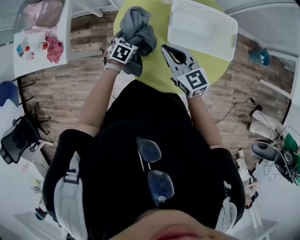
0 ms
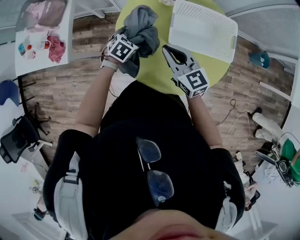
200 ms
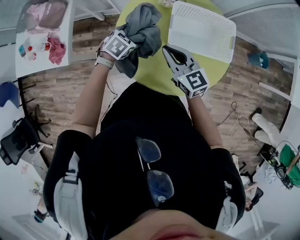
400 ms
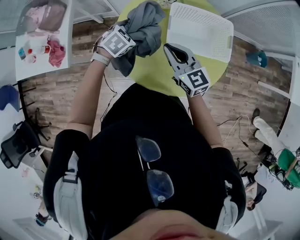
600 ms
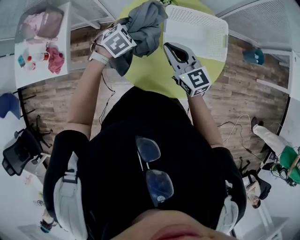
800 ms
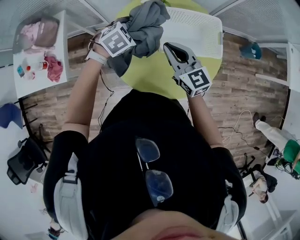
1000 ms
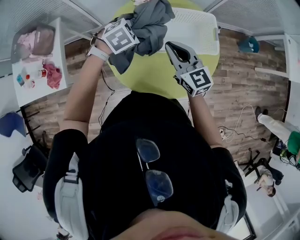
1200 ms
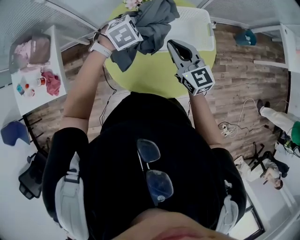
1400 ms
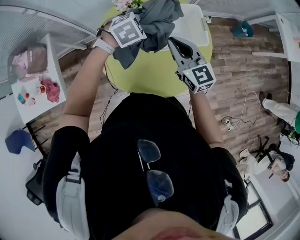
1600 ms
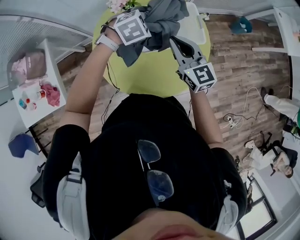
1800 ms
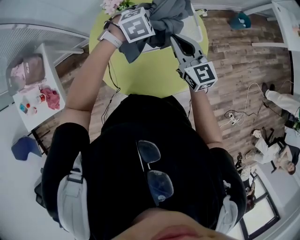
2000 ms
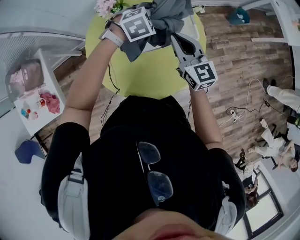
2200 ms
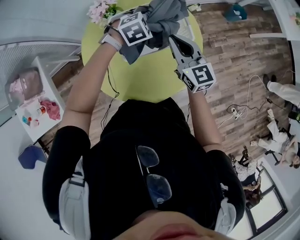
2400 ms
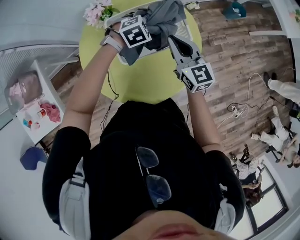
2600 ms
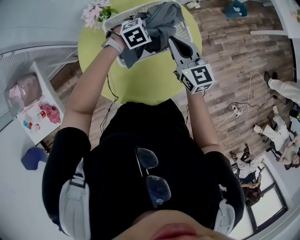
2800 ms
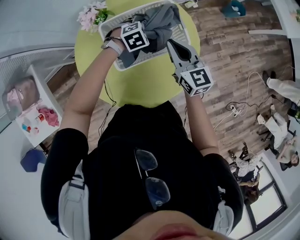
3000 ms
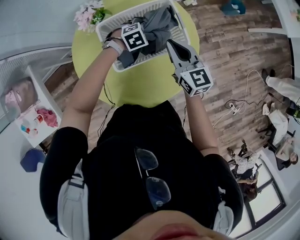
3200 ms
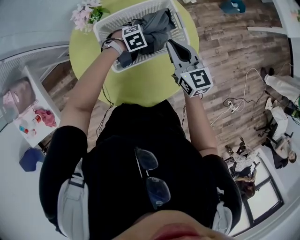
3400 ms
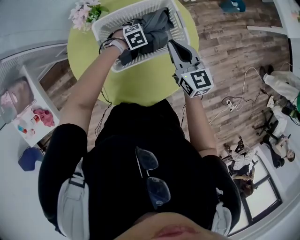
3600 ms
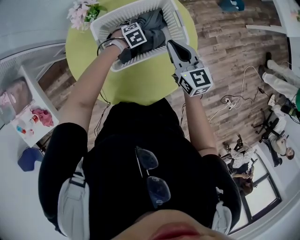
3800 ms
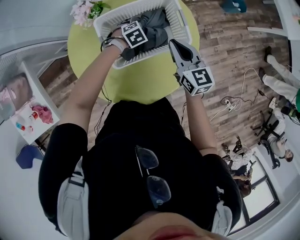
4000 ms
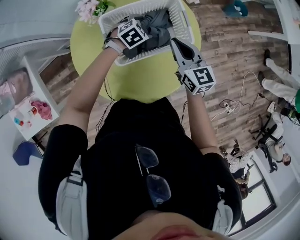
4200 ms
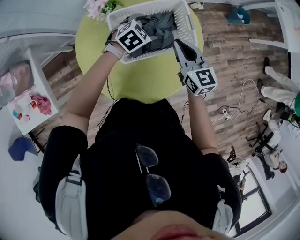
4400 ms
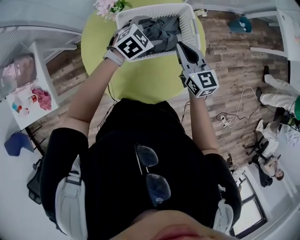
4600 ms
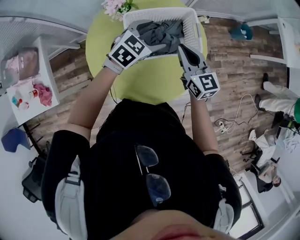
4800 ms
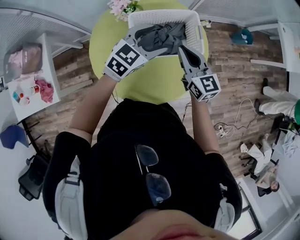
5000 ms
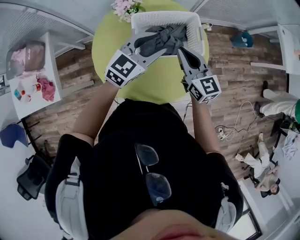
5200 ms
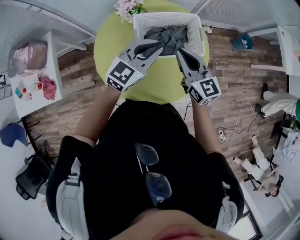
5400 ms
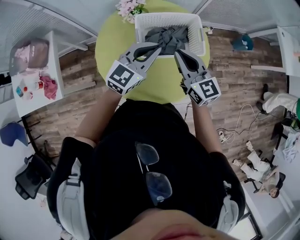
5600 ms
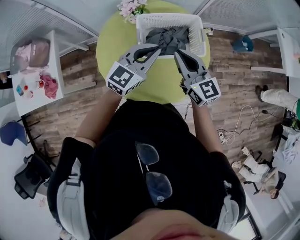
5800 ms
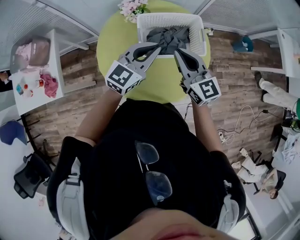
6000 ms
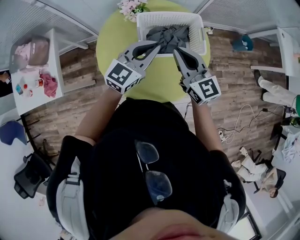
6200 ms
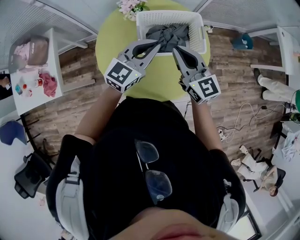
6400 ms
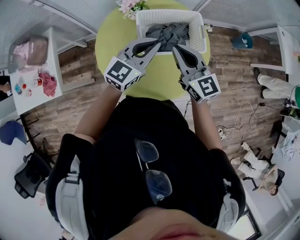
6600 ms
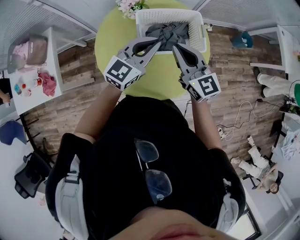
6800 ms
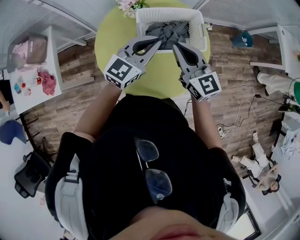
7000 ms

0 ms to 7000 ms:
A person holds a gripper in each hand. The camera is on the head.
0 ms to 1400 ms: The left gripper moves upward, roughly 20 cm, and rotates around the line of its fingers by roughly 50 degrees, clockwise from behind. The right gripper moves roughly 10 cm, and swivels about 20 degrees.
1400 ms to 2800 ms: The right gripper moves to the right, forward and downward, roughly 15 cm, while the left gripper moves to the right, downward and forward, approximately 25 cm.
2800 ms to 4200 ms: The left gripper moves downward, some 5 cm.
4200 ms to 5600 ms: The left gripper moves upward and backward, roughly 30 cm, tips its fingers upward by about 50 degrees, and closes its fingers. The right gripper is displaced upward, backward and to the left by roughly 15 cm.
5600 ms to 7000 ms: The grippers make only small movements.

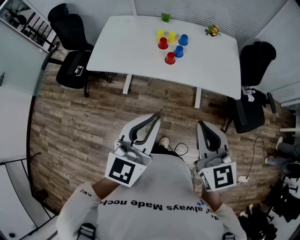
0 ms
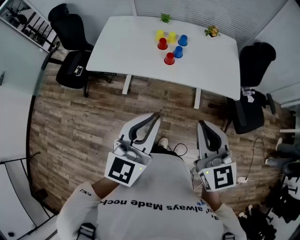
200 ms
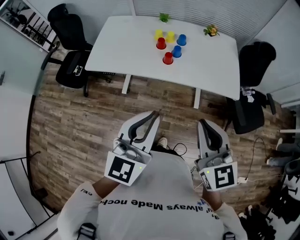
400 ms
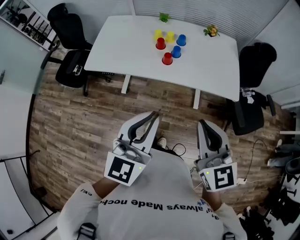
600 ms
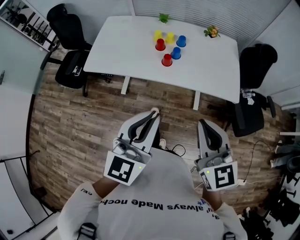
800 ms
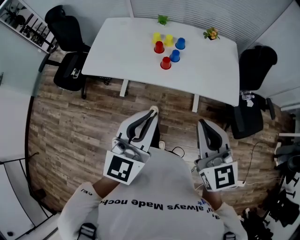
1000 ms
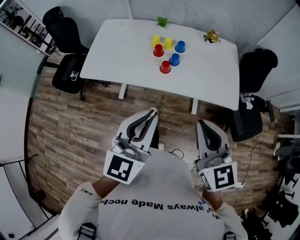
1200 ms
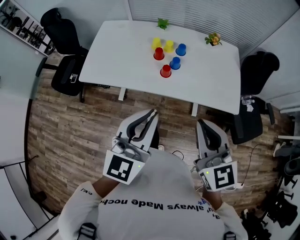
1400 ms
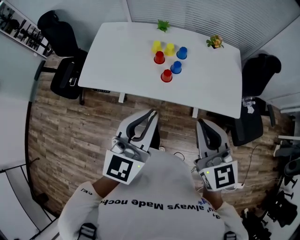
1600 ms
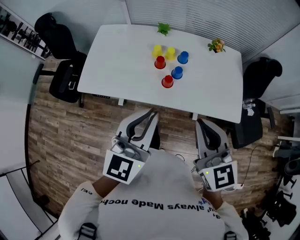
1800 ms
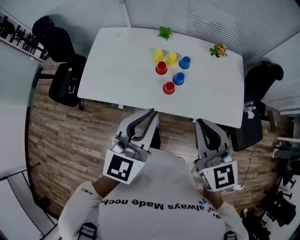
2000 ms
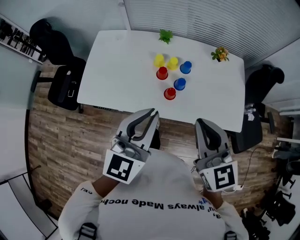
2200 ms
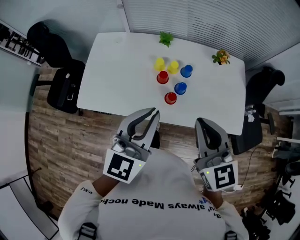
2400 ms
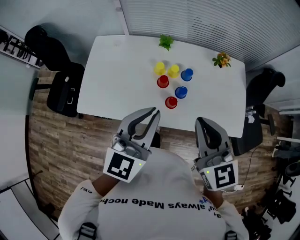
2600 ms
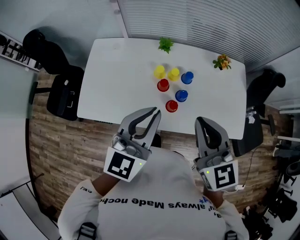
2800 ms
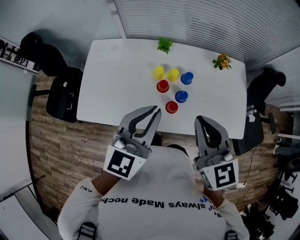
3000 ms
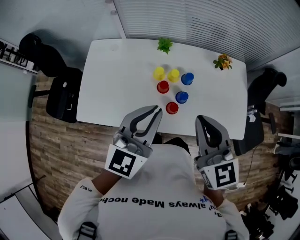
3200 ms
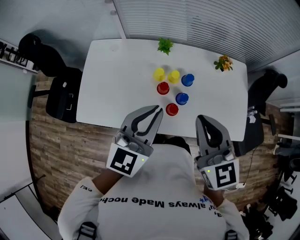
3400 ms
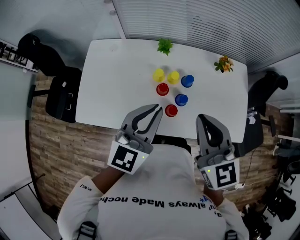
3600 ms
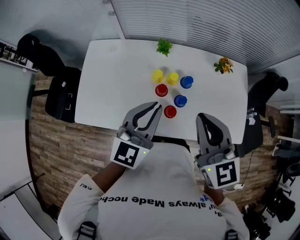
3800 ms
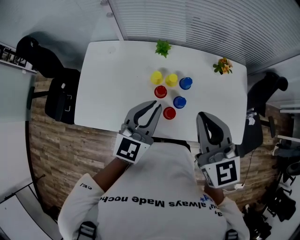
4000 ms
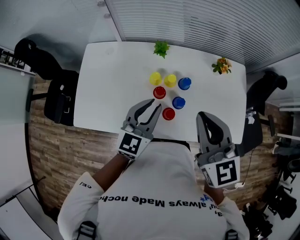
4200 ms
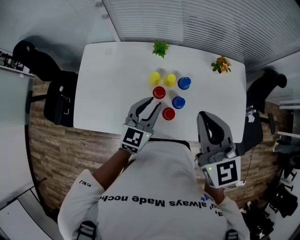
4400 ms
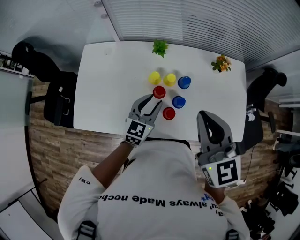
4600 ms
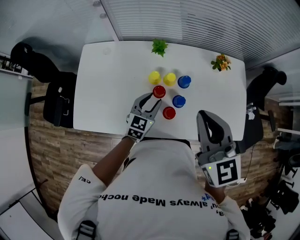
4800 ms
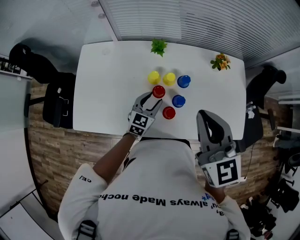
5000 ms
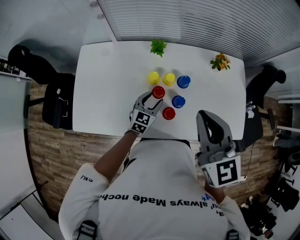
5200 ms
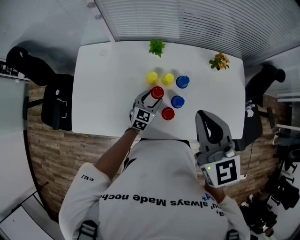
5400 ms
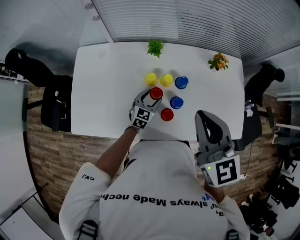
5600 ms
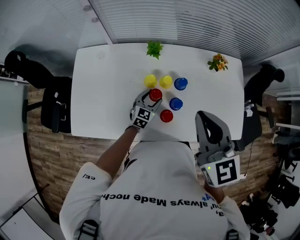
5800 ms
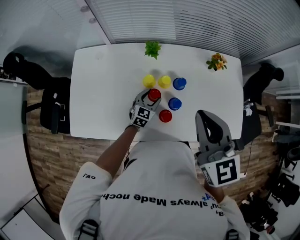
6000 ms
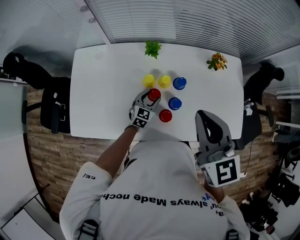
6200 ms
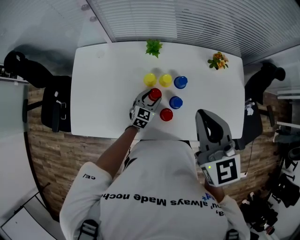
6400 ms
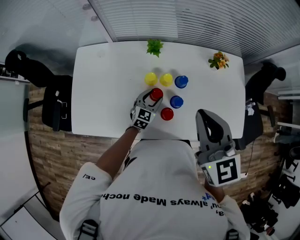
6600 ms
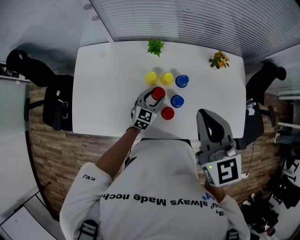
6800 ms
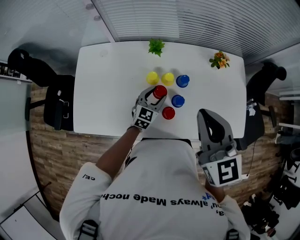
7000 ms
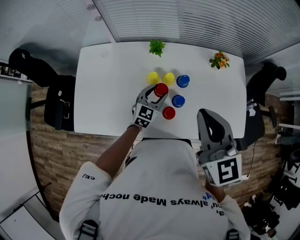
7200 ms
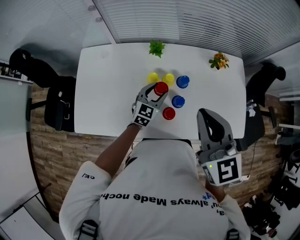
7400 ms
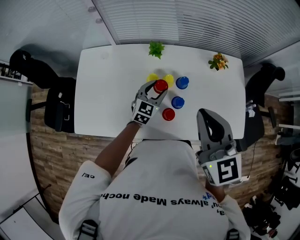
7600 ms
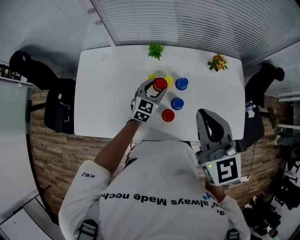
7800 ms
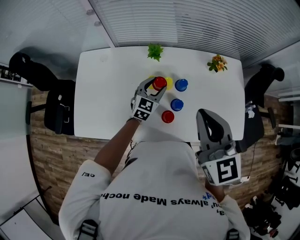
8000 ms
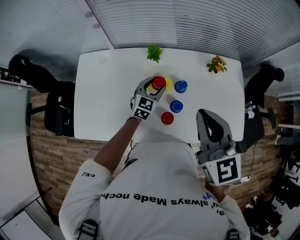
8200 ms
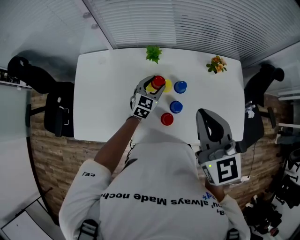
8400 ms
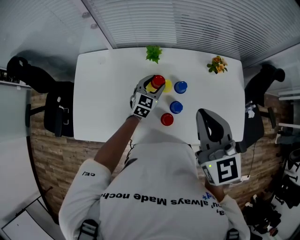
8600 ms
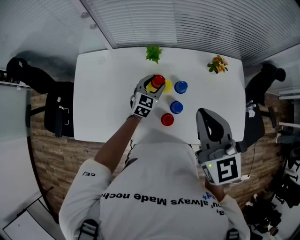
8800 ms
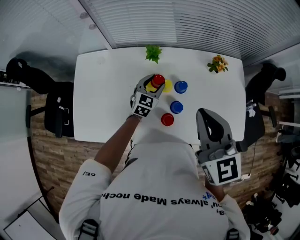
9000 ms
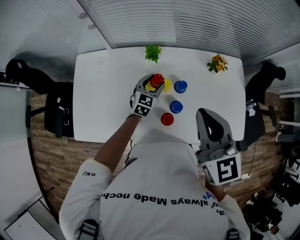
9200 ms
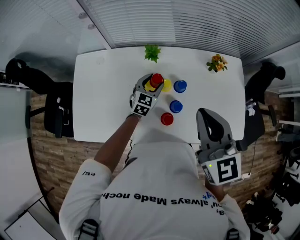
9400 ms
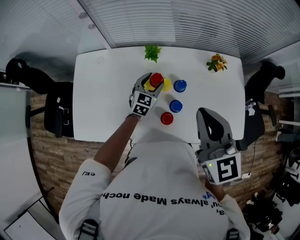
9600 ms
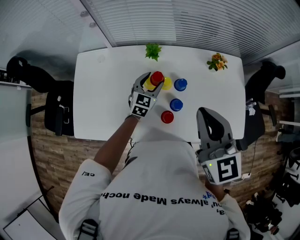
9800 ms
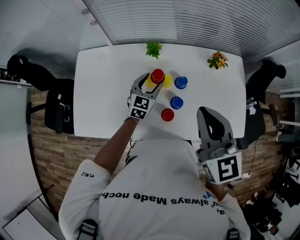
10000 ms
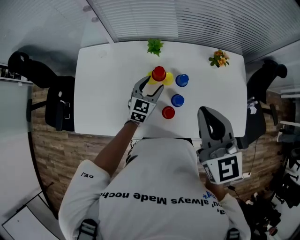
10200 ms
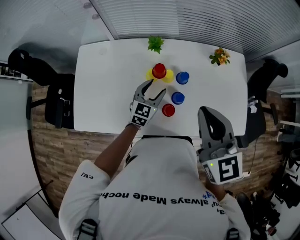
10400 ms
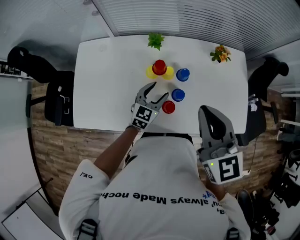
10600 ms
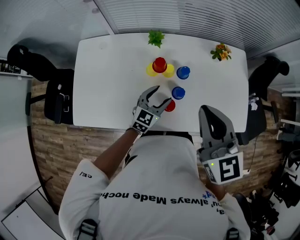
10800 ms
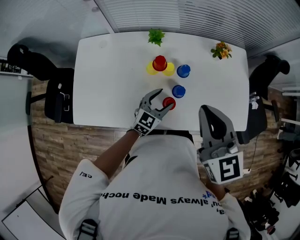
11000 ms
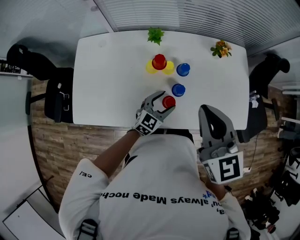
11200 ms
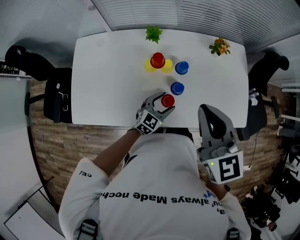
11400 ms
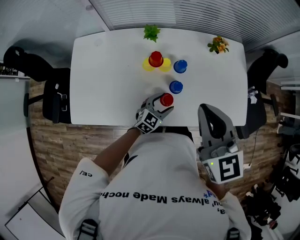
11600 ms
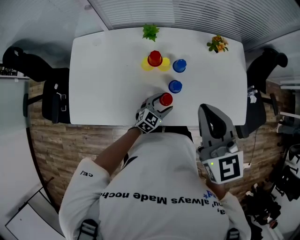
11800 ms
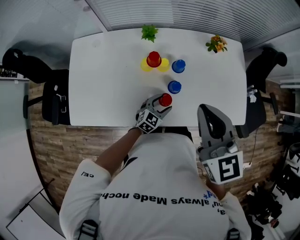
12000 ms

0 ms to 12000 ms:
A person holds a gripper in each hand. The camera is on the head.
0 ms to 1600 ms: The grippers both shift forward by about 15 cm.
1600 ms to 3000 ms: Both grippers travel together forward, about 20 cm.
3000 ms to 4400 ms: The right gripper is displaced forward by some 5 cm; the left gripper goes some 20 cm downward and forward.
4400 ms to 6000 ms: The left gripper goes some 20 cm downward, and opens.
6000 ms to 7600 ms: The left gripper travels upward by roughly 10 cm.
7600 ms to 9000 ms: The left gripper is displaced forward by roughly 5 cm.
9000 ms to 10400 ms: The left gripper moves backward, some 10 cm.
10400 ms to 12000 ms: The left gripper is displaced downward, backward and to the right by some 20 cm.

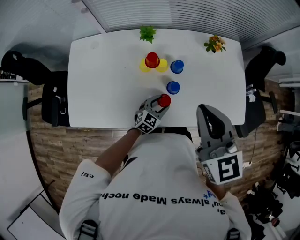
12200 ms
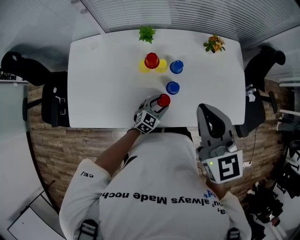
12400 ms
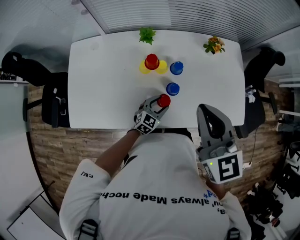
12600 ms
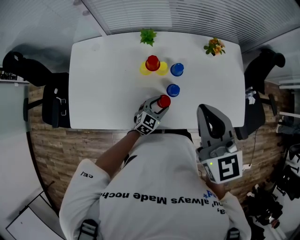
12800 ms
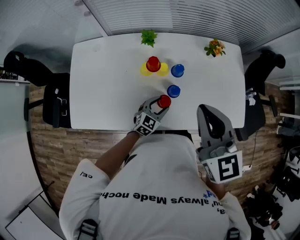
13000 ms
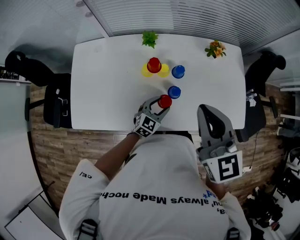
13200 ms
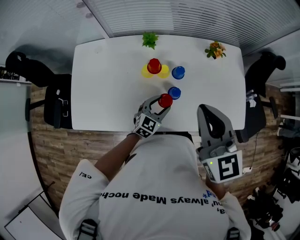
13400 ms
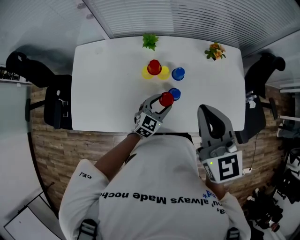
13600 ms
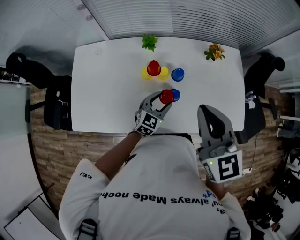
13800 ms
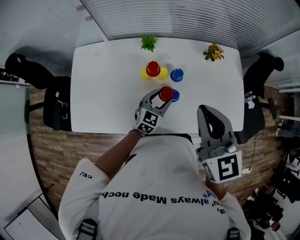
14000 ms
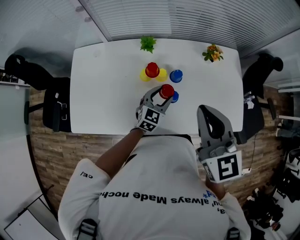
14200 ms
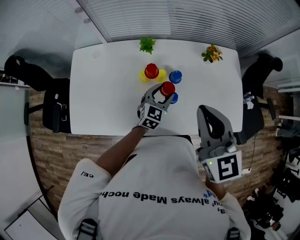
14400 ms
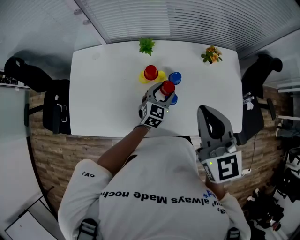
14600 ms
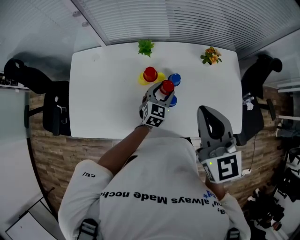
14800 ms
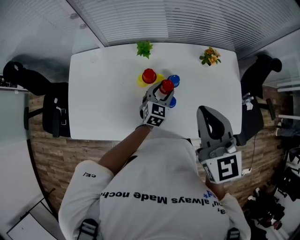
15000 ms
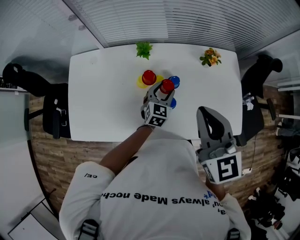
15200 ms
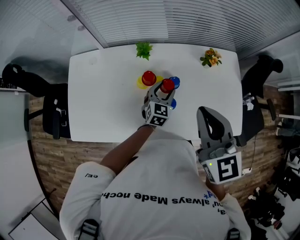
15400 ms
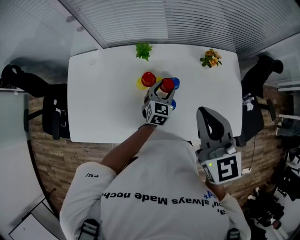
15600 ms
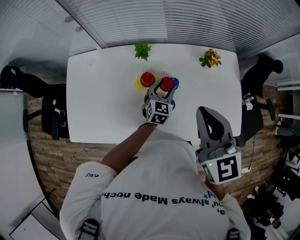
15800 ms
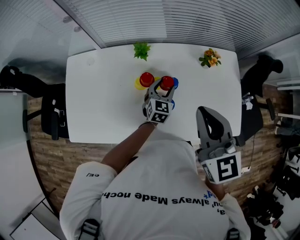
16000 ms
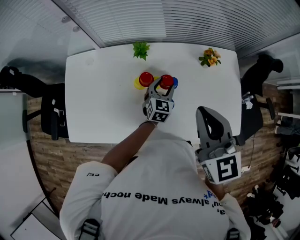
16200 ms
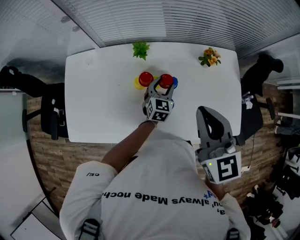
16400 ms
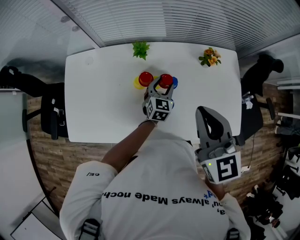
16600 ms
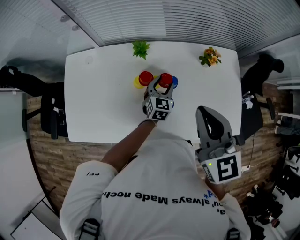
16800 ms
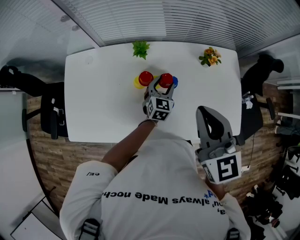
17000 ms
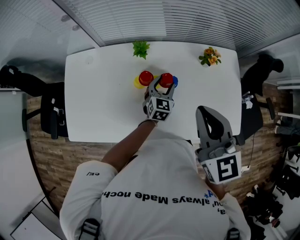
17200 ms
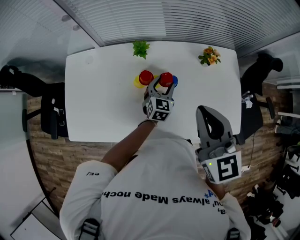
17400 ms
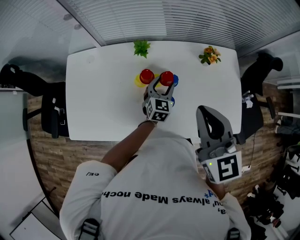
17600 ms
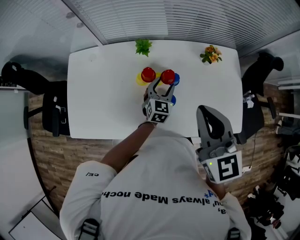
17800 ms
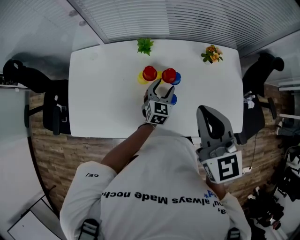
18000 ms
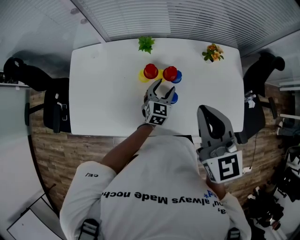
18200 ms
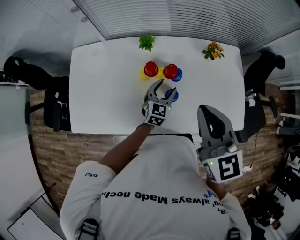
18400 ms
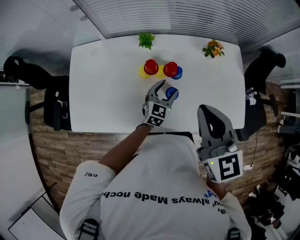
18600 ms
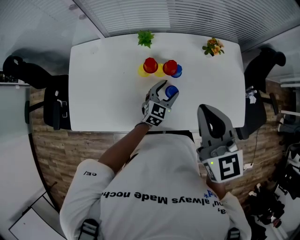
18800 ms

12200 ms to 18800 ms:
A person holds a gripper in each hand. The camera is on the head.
12200 ms to 13800 ms: The left gripper goes approximately 10 cm upward.
13800 ms to 15400 ms: The left gripper is displaced forward by approximately 10 cm.
15400 ms to 17200 ms: There are only small adjustments of the grippers.
17200 ms to 18800 ms: The left gripper goes some 10 cm backward, while the right gripper moves backward, some 5 cm.
